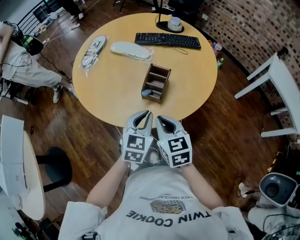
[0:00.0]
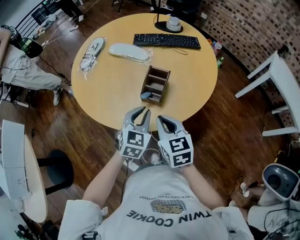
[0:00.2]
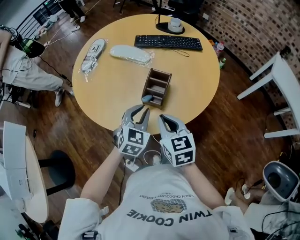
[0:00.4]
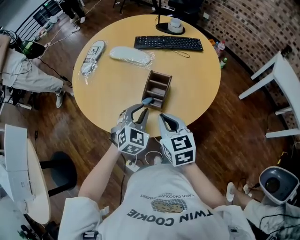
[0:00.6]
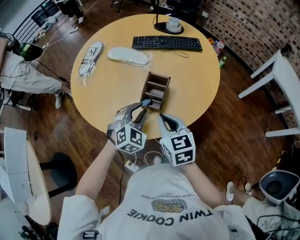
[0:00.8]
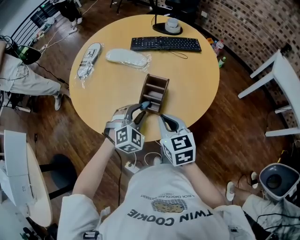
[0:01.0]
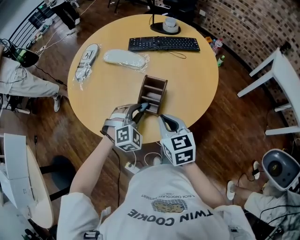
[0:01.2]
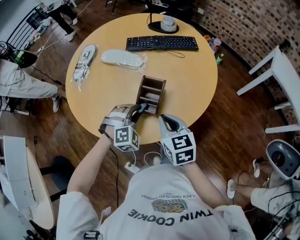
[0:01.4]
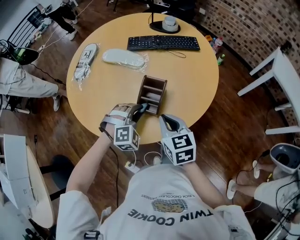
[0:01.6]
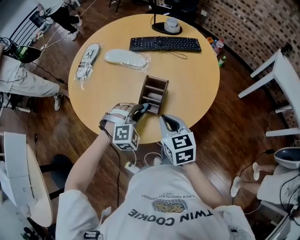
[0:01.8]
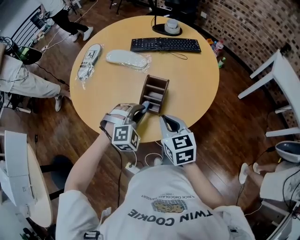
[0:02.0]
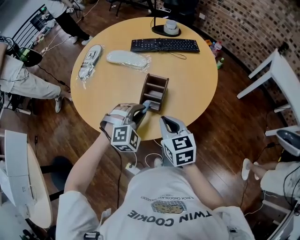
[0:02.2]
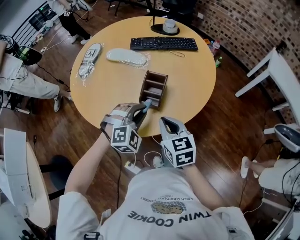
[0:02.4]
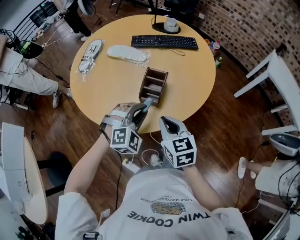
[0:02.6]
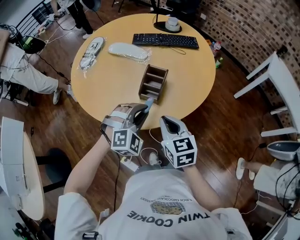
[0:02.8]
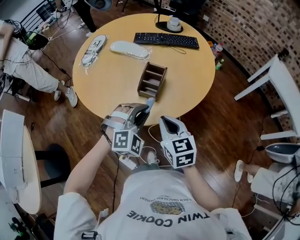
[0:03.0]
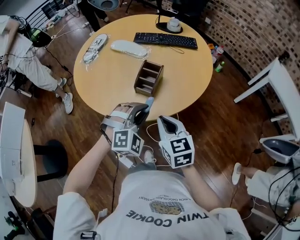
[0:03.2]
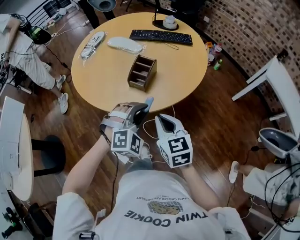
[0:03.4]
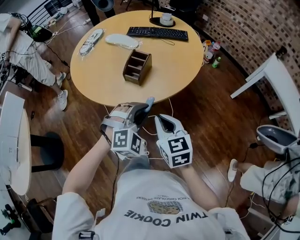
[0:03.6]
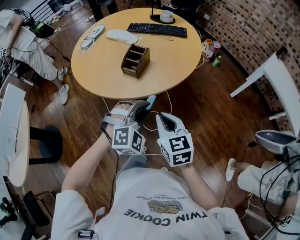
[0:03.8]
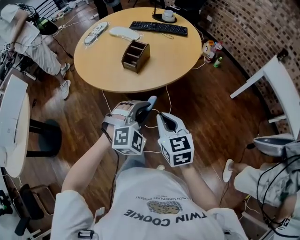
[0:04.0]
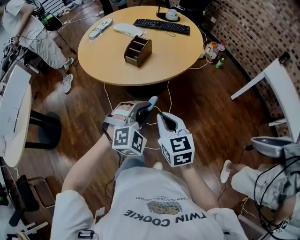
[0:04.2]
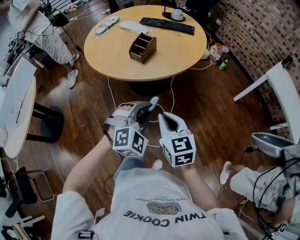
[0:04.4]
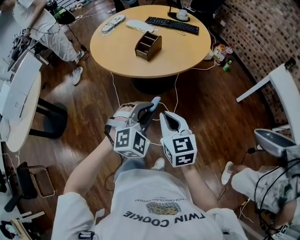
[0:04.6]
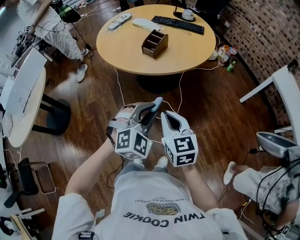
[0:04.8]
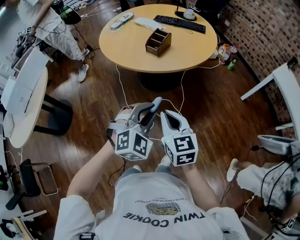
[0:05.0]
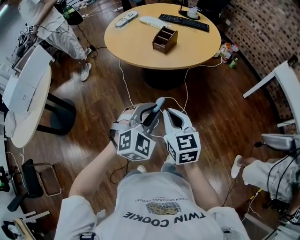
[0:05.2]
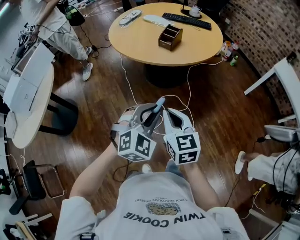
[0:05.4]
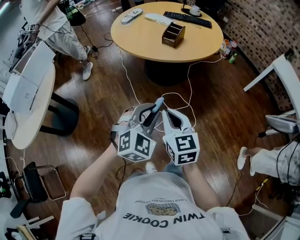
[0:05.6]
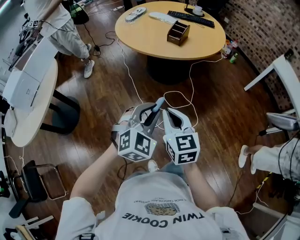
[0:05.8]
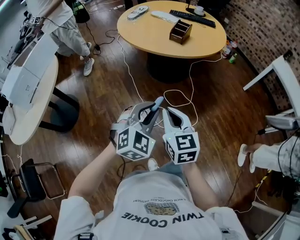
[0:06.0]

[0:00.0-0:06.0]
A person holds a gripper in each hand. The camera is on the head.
0:00.0 to 0:01.6: The left gripper moves forward and downward, roughly 15 cm, and rotates around the line of its fingers by approximately 60 degrees, clockwise from behind. Meanwhile the right gripper heads forward, covering approximately 10 cm.
0:01.6 to 0:03.0: The right gripper shifts about 10 cm backward. The left gripper shifts about 15 cm backward and upward.
0:03.0 to 0:04.4: The two grippers go roughly 30 cm backward and to the right.
0:04.4 to 0:06.0: The grippers both shift to the left and backward by some 30 cm.

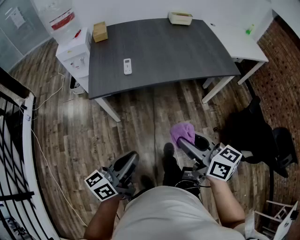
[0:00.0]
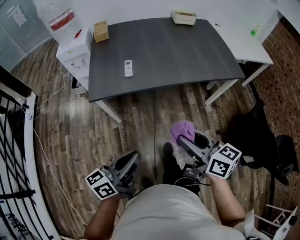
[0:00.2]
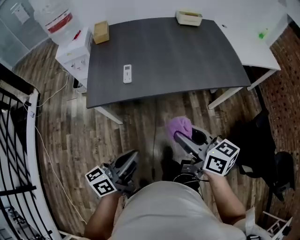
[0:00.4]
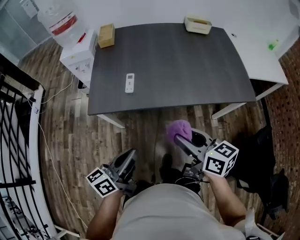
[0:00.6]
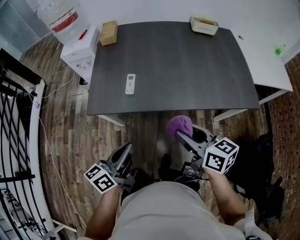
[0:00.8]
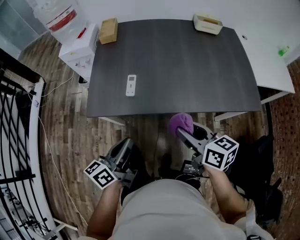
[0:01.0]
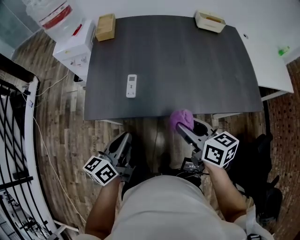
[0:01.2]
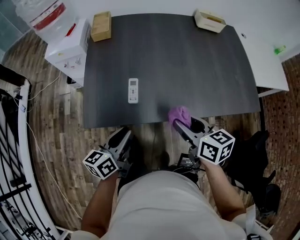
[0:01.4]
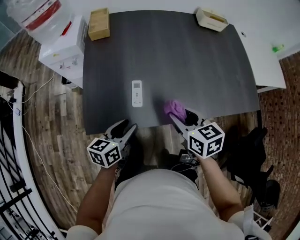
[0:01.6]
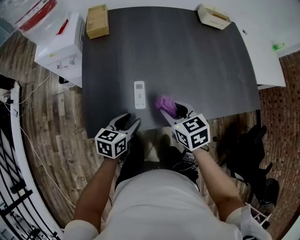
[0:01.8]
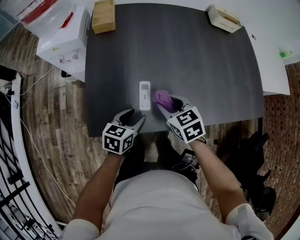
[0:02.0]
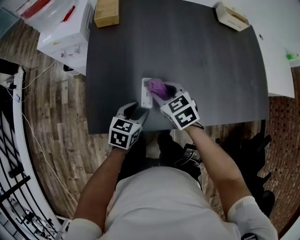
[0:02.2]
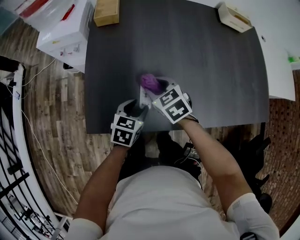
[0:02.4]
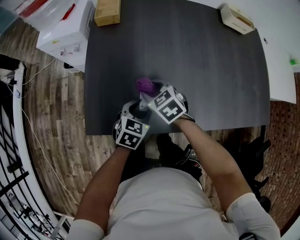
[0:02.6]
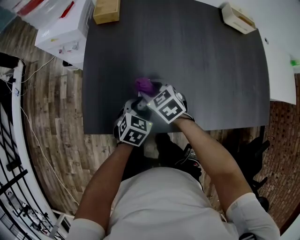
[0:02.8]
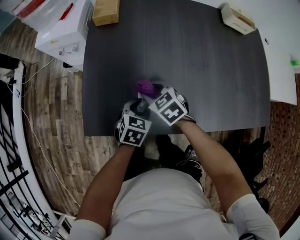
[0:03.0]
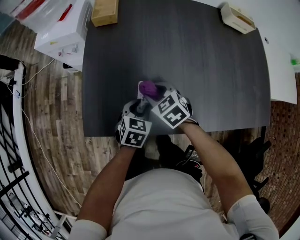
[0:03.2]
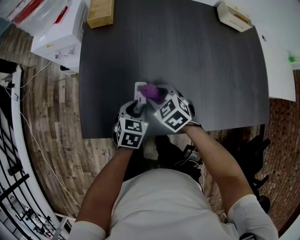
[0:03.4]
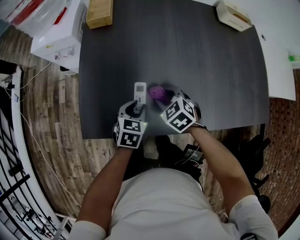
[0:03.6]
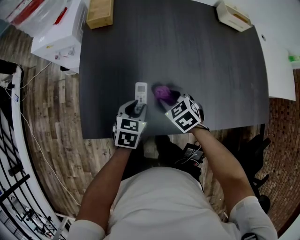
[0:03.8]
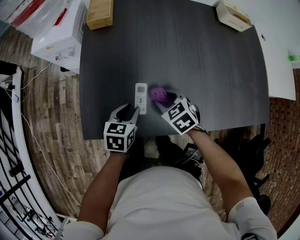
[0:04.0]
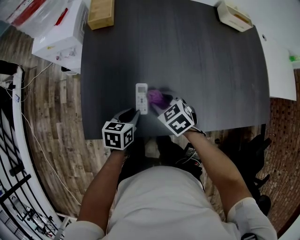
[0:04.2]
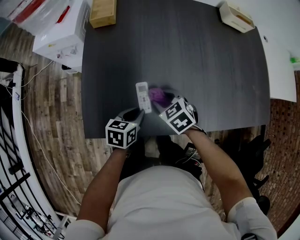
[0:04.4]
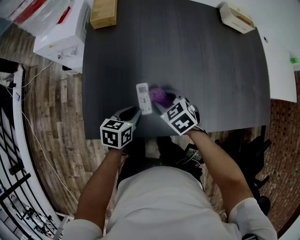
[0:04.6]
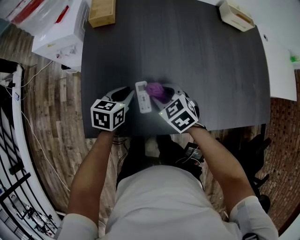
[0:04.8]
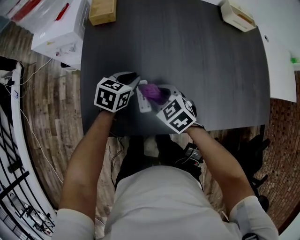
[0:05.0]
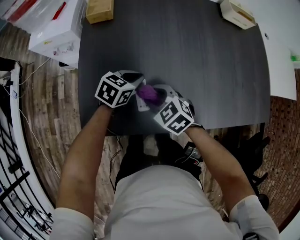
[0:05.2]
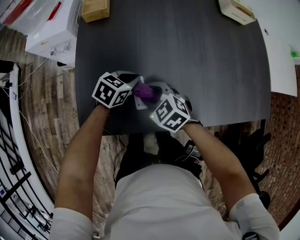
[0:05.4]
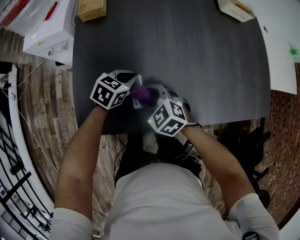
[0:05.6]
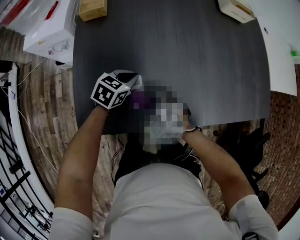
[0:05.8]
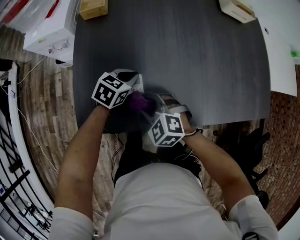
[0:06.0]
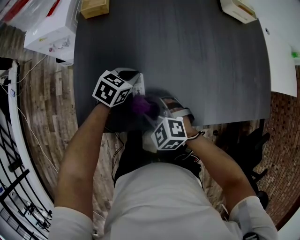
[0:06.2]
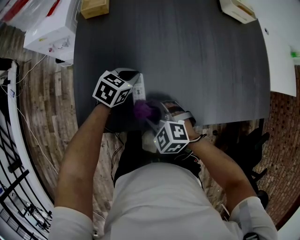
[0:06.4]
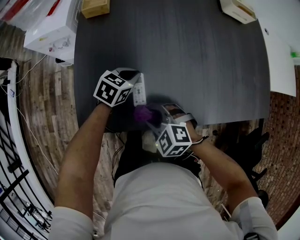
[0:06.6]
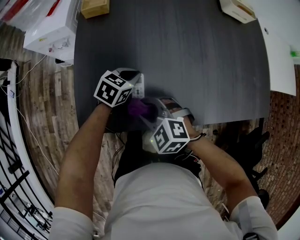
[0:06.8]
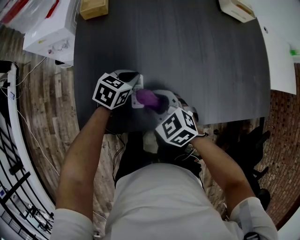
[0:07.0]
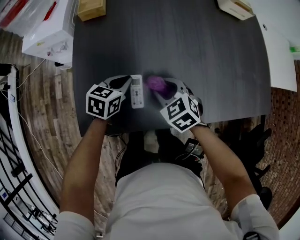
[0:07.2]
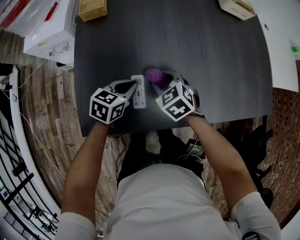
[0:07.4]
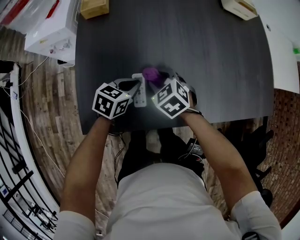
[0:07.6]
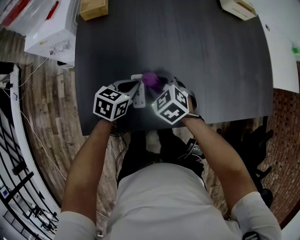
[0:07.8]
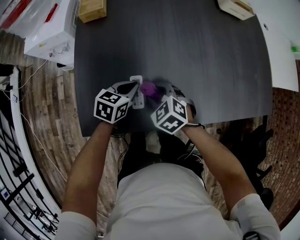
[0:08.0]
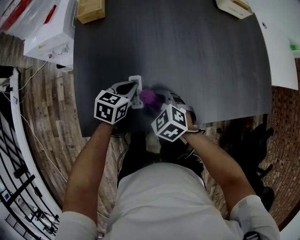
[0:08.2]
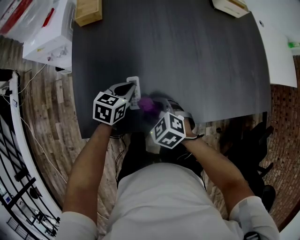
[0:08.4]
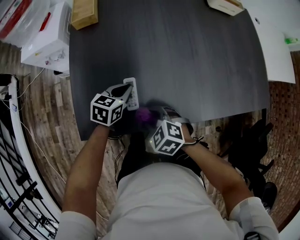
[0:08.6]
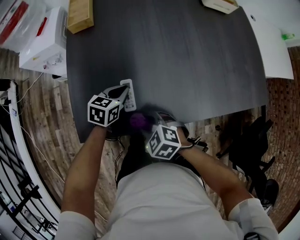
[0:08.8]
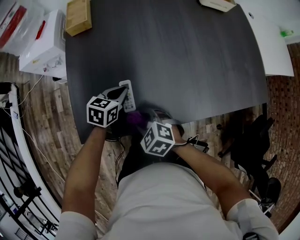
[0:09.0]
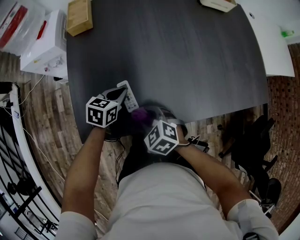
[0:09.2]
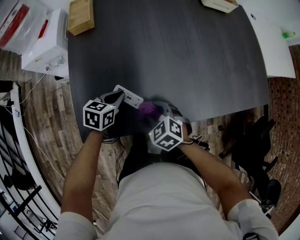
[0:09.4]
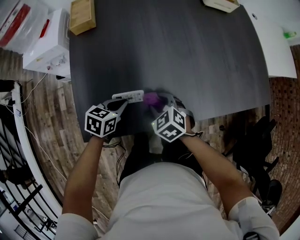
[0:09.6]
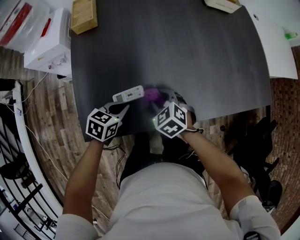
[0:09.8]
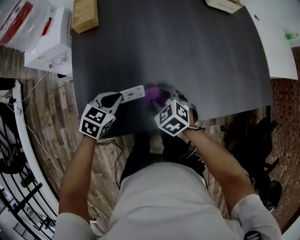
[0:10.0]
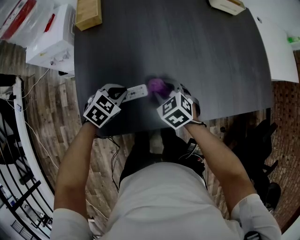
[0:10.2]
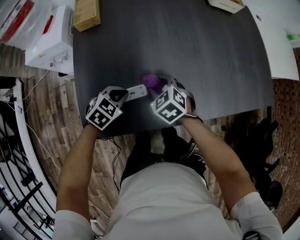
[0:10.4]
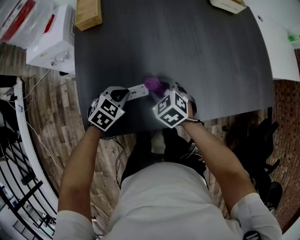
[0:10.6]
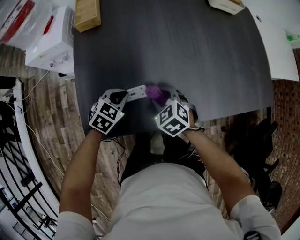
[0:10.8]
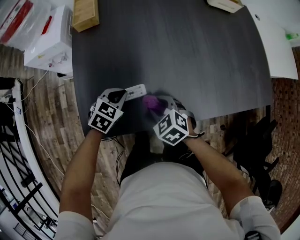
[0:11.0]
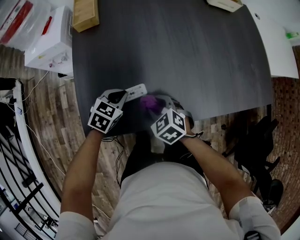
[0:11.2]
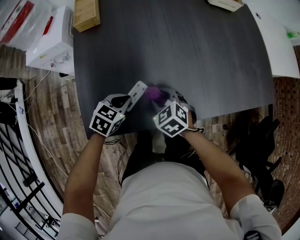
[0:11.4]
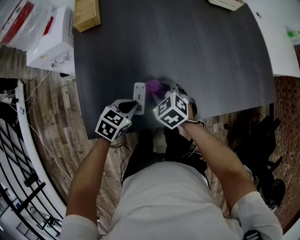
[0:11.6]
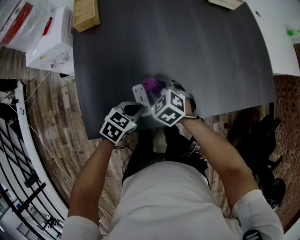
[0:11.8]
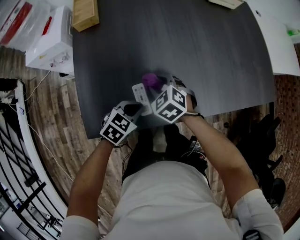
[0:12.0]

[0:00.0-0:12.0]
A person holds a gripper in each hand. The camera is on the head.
0:00.0 to 0:01.6: The grippers both shift forward by roughly 40 cm. The left gripper rotates some 30 degrees, and opens. The right gripper swivels about 30 degrees.
0:01.6 to 0:03.0: The left gripper shifts roughly 15 cm forward and downward, and turns by roughly 40 degrees. Meanwhile the right gripper moves downward, forward and to the left, roughly 20 cm, and rotates roughly 30 degrees.
0:03.0 to 0:04.4: The left gripper turns by some 20 degrees.
0:04.4 to 0:06.0: The right gripper heads backward, covering roughly 5 cm, and changes its angle by some 30 degrees, while the left gripper shifts some 10 cm forward, and rotates some 30 degrees.
0:06.0 to 0:07.6: The right gripper is displaced forward by approximately 10 cm, and changes its angle by roughly 20 degrees.
0:07.6 to 0:09.0: The right gripper travels backward by approximately 15 cm.
0:09.0 to 0:10.4: The right gripper travels forward by roughly 15 cm; the left gripper rotates some 30 degrees.
0:10.4 to 0:12.0: The right gripper travels backward and back again, approximately 10 cm each way. Meanwhile the left gripper travels to the right and backward by some 10 cm.

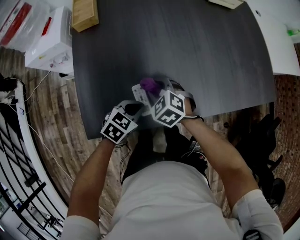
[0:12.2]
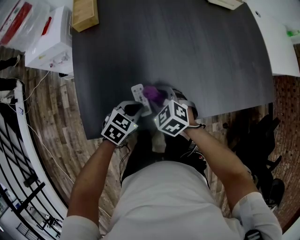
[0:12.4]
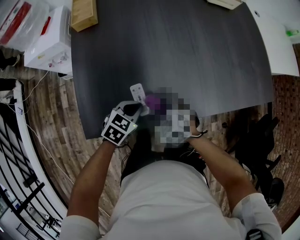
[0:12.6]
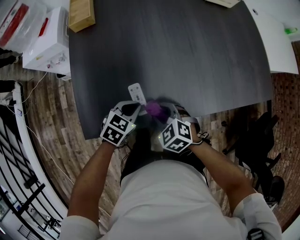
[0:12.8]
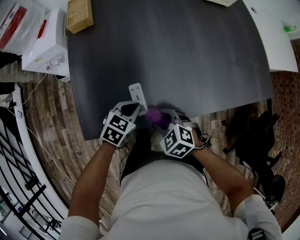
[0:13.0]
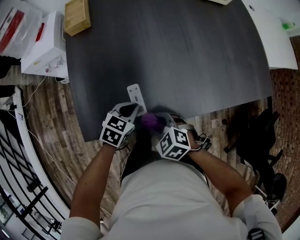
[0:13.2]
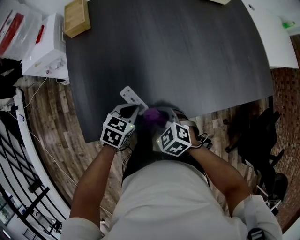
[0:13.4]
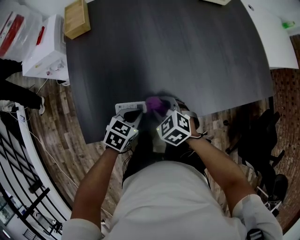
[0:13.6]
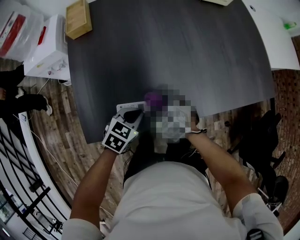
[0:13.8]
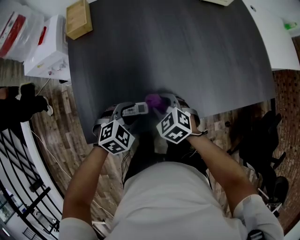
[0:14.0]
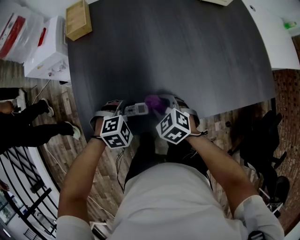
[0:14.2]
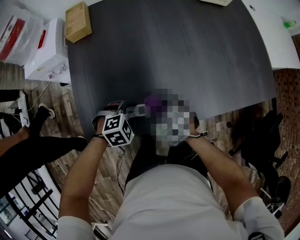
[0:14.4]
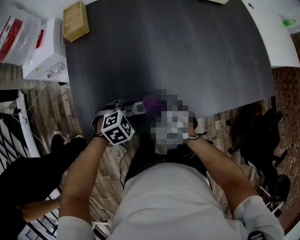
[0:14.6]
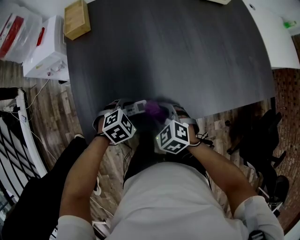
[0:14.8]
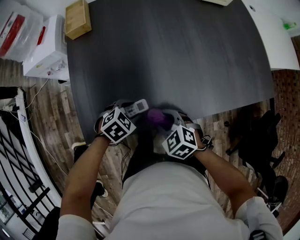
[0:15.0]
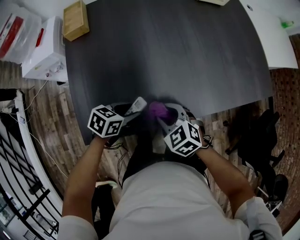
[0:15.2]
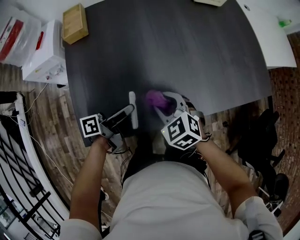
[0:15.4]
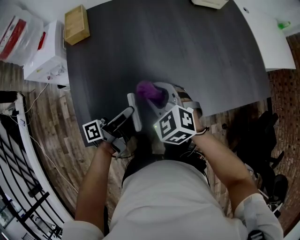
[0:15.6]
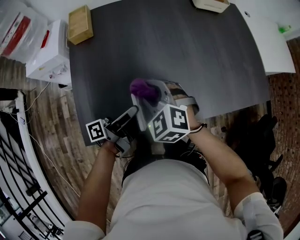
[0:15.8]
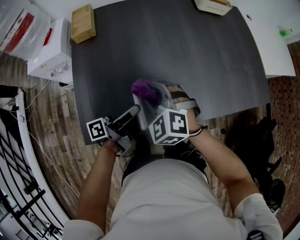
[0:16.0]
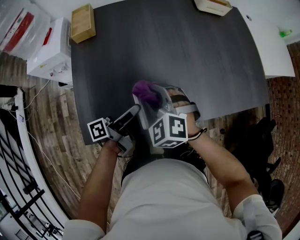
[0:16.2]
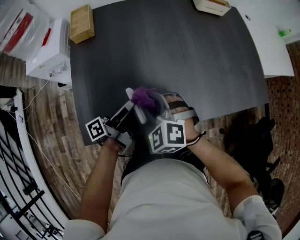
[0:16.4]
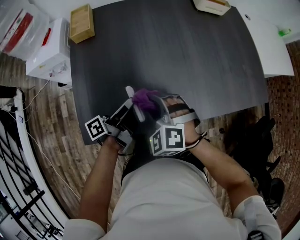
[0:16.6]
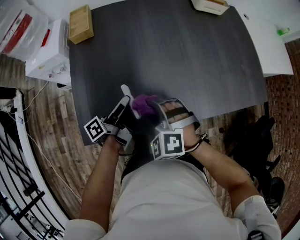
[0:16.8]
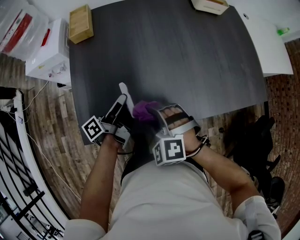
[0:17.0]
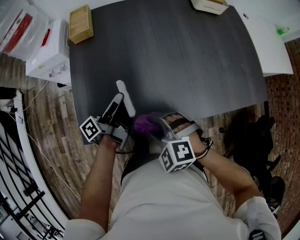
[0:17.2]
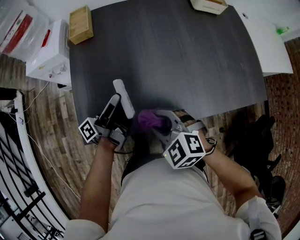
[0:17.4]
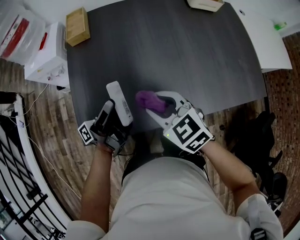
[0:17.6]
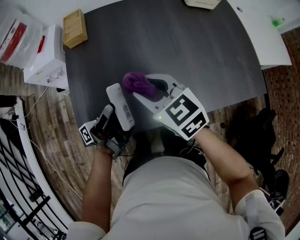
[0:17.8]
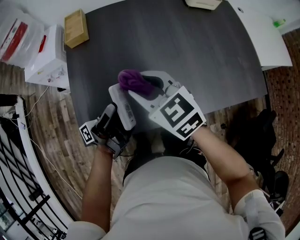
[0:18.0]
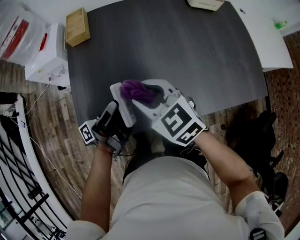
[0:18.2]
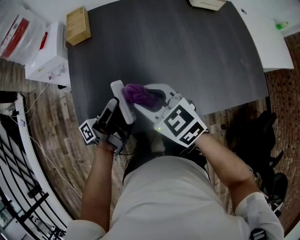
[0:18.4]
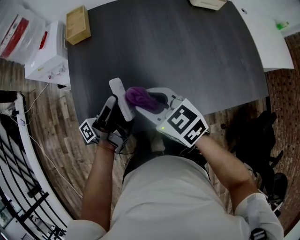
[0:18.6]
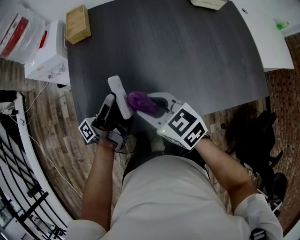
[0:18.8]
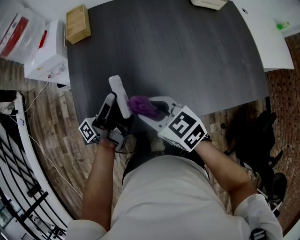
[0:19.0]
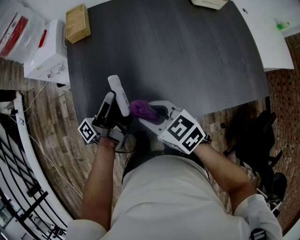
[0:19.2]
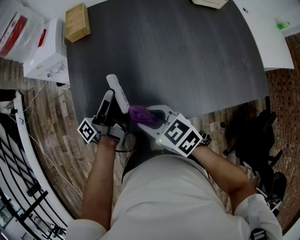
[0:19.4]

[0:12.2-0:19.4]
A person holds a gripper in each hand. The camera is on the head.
0:12.2 to 0:13.6: The right gripper heads backward and to the right, covering about 10 cm.
0:13.6 to 0:15.0: The left gripper rotates approximately 30 degrees, and opens, while the right gripper ends up roughly 5 cm from where it was.
0:15.0 to 0:16.6: The two grippers go about 10 cm upward and forward. The left gripper angles its fingers upward, by about 70 degrees, while the right gripper changes its angle by roughly 30 degrees.
0:16.6 to 0:18.0: The grippers both shift upward by approximately 10 cm. The right gripper travels backward and back again, some 10 cm each way, and turns by some 50 degrees. Meanwhile the left gripper changes its angle by roughly 30 degrees.
0:18.0 to 0:19.4: The right gripper travels backward and downward by some 15 cm, and rotates about 20 degrees; the left gripper moves downward, about 5 cm, and turns by approximately 20 degrees.
